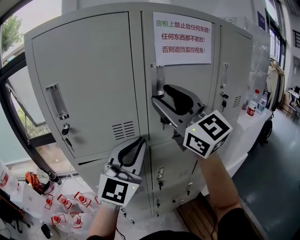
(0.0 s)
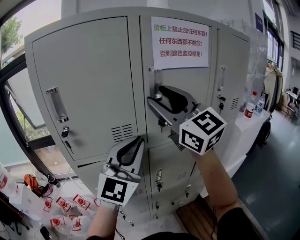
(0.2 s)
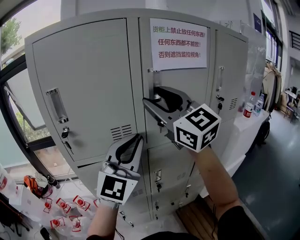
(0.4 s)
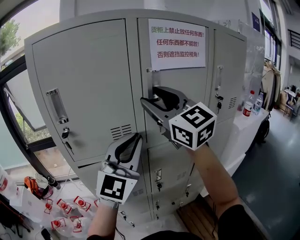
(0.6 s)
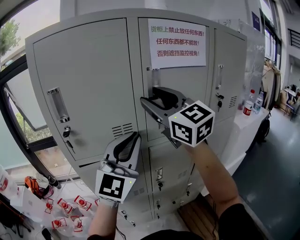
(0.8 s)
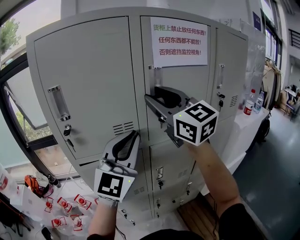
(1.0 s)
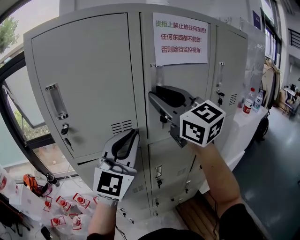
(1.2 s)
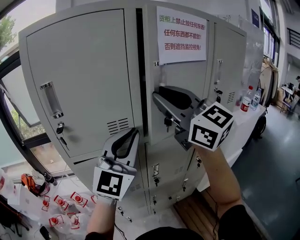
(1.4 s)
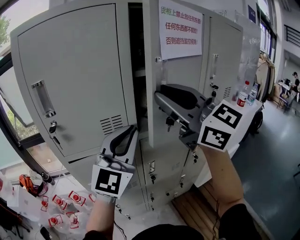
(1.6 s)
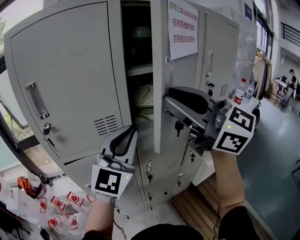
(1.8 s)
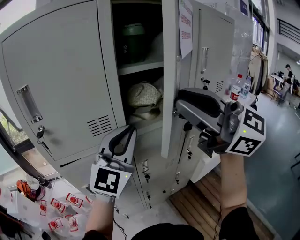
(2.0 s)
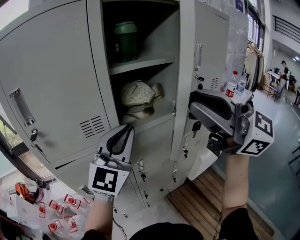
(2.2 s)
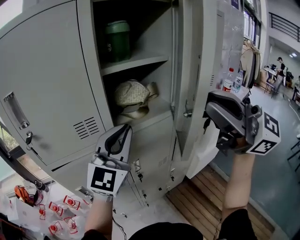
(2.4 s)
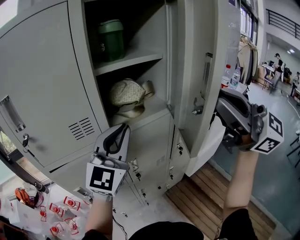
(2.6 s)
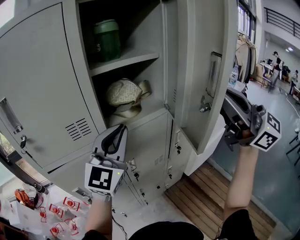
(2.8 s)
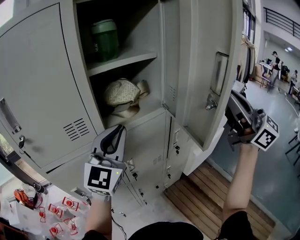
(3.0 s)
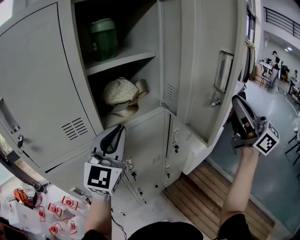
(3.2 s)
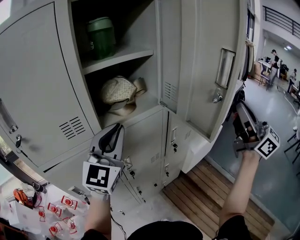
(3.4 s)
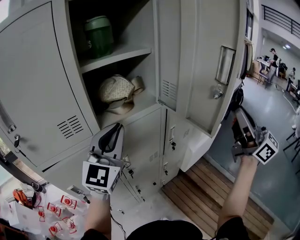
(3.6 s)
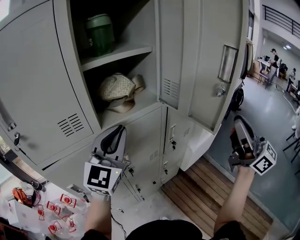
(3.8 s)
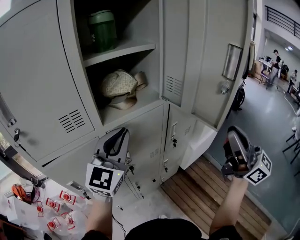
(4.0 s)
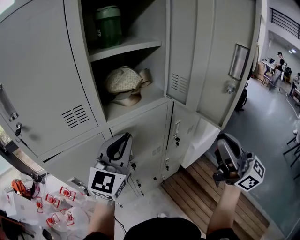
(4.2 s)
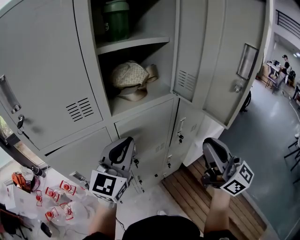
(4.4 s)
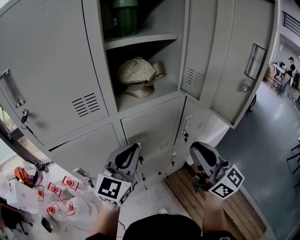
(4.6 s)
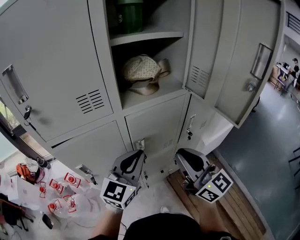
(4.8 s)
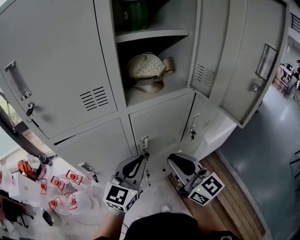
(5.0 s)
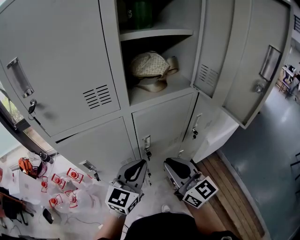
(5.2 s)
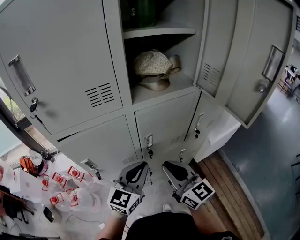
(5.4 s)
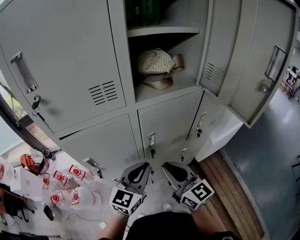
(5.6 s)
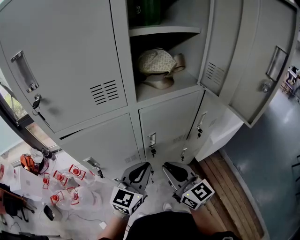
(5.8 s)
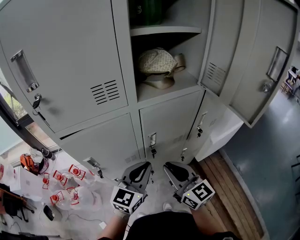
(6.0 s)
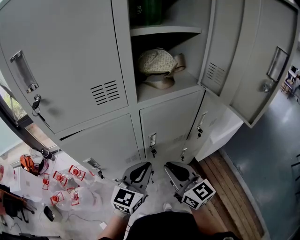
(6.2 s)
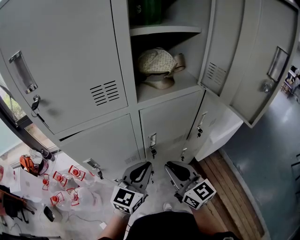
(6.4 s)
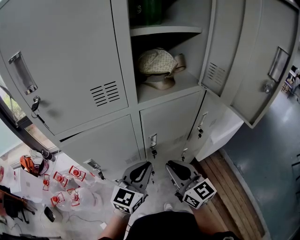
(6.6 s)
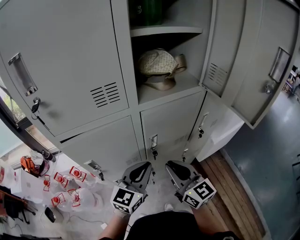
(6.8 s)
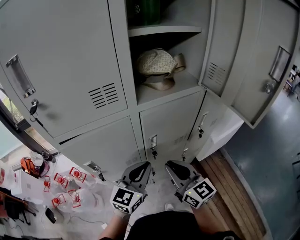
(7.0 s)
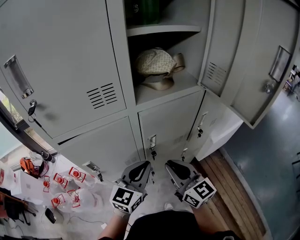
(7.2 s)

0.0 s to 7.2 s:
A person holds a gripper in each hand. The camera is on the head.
0.0 to 1.4 s: The right gripper closes its fingers.
1.4 to 2.8 s: The left gripper travels to the right by approximately 10 cm. The right gripper travels to the right and backward by about 25 cm.
2.8 to 4.4 s: The left gripper goes about 10 cm downward, while the right gripper moves downward, some 20 cm, and rotates roughly 20 degrees.
4.4 to 5.8 s: The right gripper shifts approximately 25 cm to the left and downward, and turns by approximately 20 degrees. Meanwhile the left gripper shifts about 15 cm downward and backward.
5.8 to 7.2 s: The grippers stay close to where they were, moving slightly.

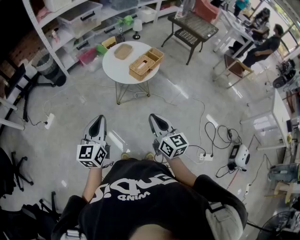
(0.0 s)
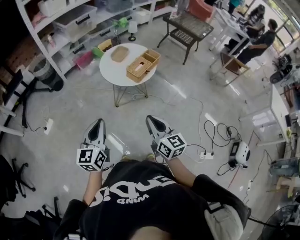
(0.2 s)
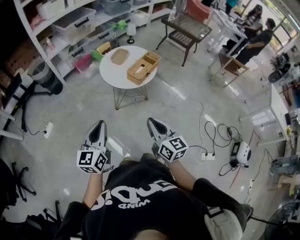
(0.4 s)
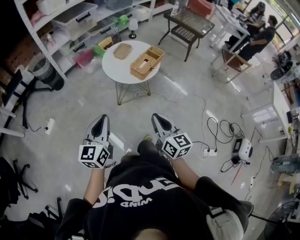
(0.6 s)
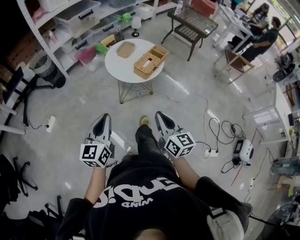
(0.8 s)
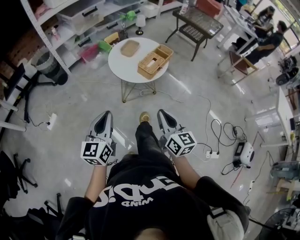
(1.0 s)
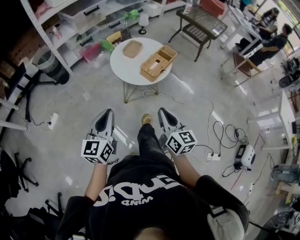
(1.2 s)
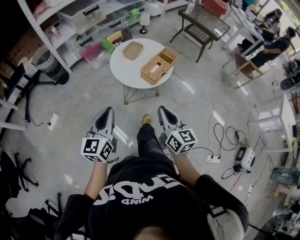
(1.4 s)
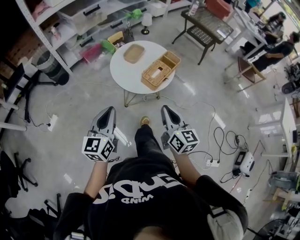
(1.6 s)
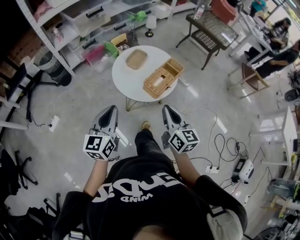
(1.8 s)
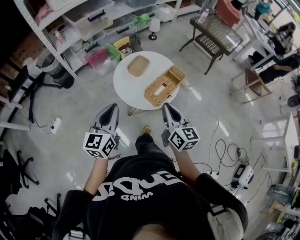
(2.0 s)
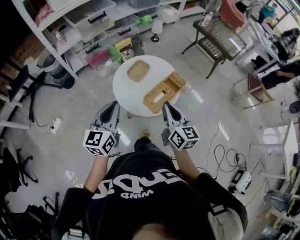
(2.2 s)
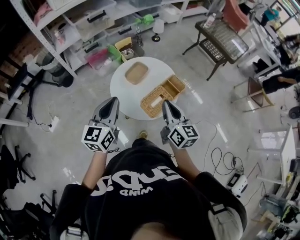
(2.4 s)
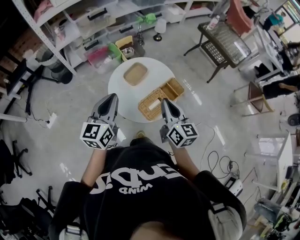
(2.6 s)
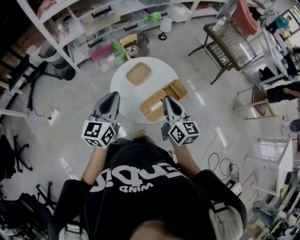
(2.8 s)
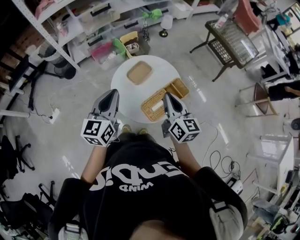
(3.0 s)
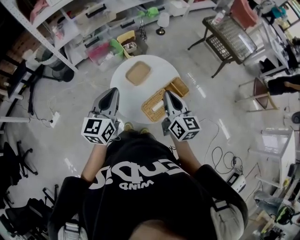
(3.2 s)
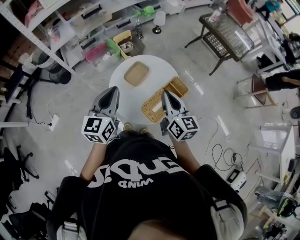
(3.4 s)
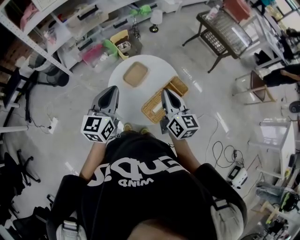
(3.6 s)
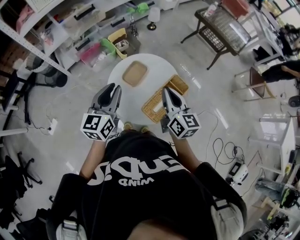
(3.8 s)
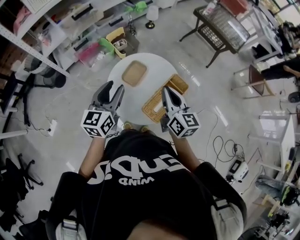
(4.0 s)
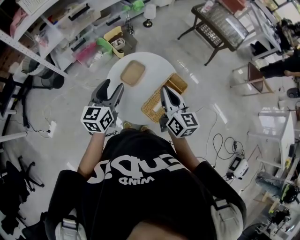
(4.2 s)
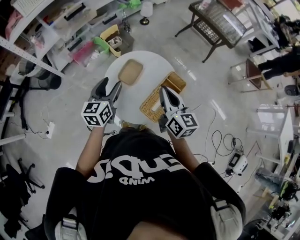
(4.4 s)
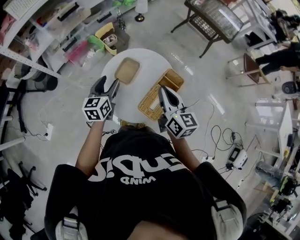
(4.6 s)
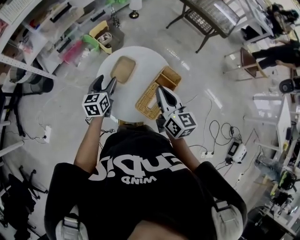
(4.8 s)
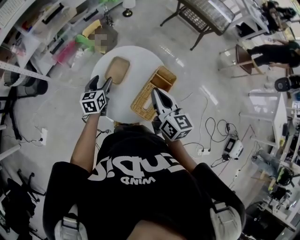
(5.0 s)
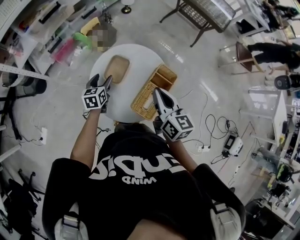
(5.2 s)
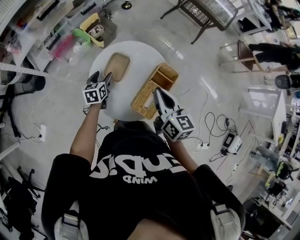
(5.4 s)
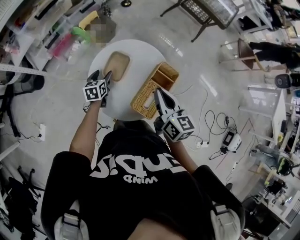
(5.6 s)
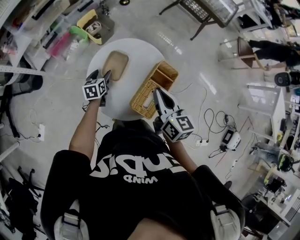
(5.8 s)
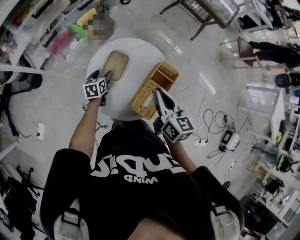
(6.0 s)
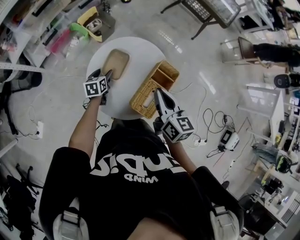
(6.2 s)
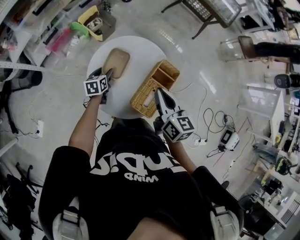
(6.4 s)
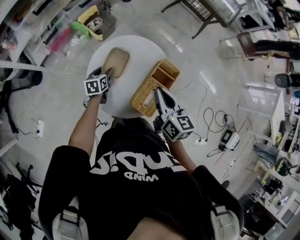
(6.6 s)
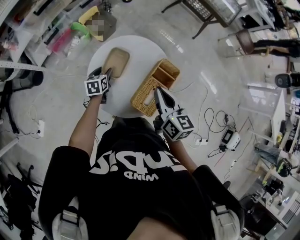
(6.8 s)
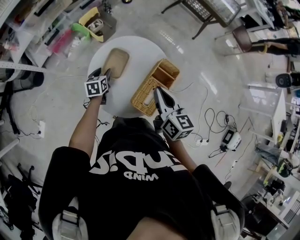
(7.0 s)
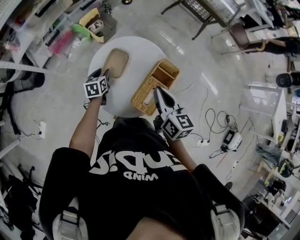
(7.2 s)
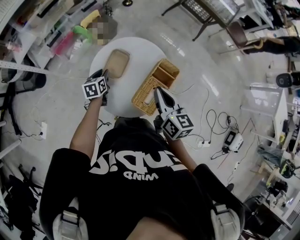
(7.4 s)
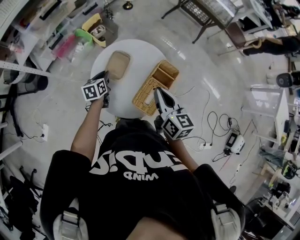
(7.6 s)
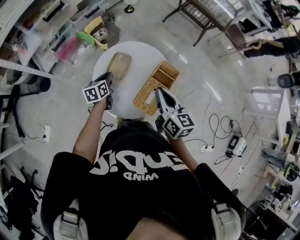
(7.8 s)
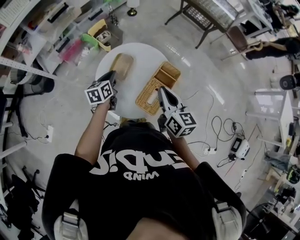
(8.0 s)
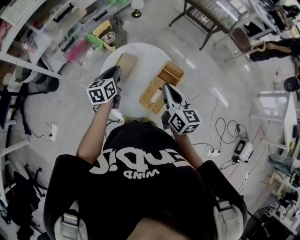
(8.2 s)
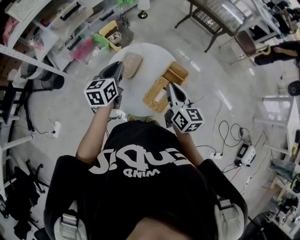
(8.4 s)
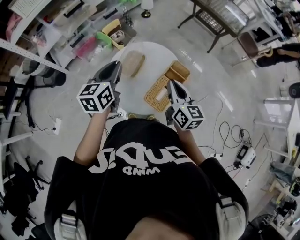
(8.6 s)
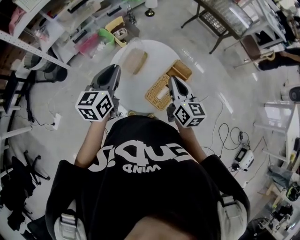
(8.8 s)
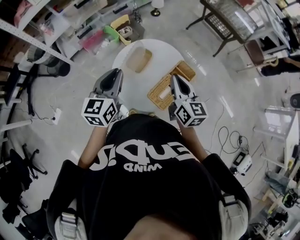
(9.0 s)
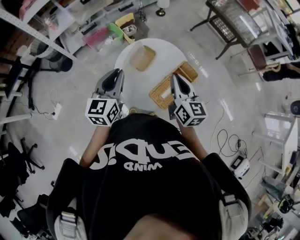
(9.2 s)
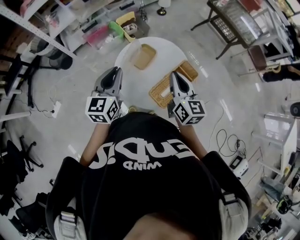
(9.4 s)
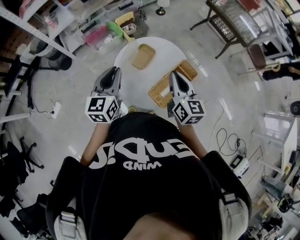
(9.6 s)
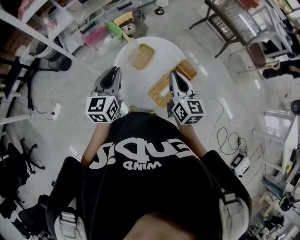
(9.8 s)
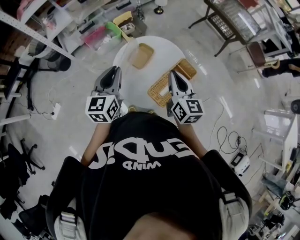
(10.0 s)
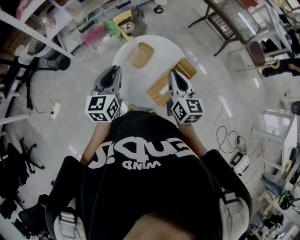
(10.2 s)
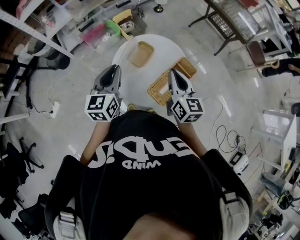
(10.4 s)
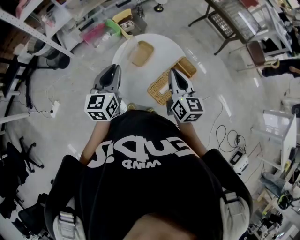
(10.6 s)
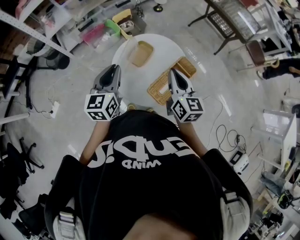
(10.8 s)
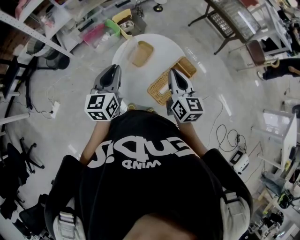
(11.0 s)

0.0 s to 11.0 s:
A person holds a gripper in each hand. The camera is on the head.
0.0 to 1.6 s: Both grippers travel together forward, roughly 15 cm.
1.6 to 3.2 s: The grippers both shift forward by about 30 cm.
3.2 to 4.8 s: The left gripper is displaced downward and forward by roughly 25 cm, swivels some 20 degrees, and opens its fingers.
4.8 to 6.2 s: The left gripper heads downward, covering approximately 15 cm, and swivels some 20 degrees.
6.2 to 7.8 s: The left gripper travels upward by roughly 10 cm, and closes its fingers.
7.8 to 9.4 s: The left gripper moves upward and backward, roughly 25 cm, and turns by about 30 degrees.
9.4 to 11.0 s: Both grippers stay about where they are.

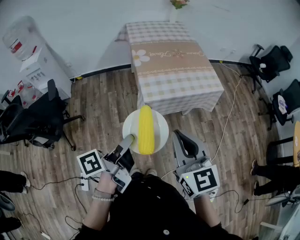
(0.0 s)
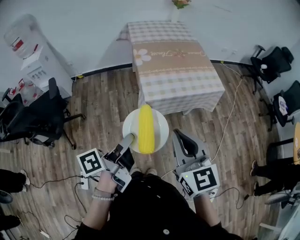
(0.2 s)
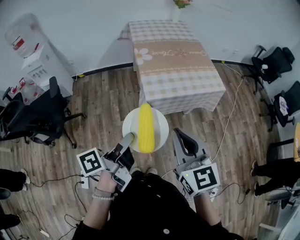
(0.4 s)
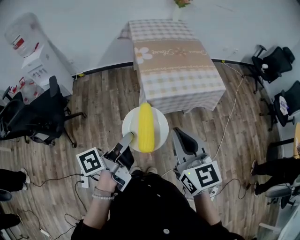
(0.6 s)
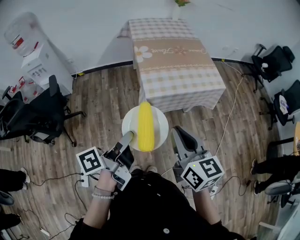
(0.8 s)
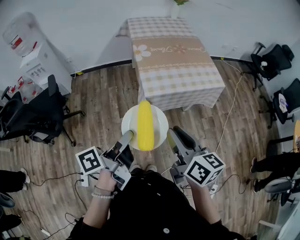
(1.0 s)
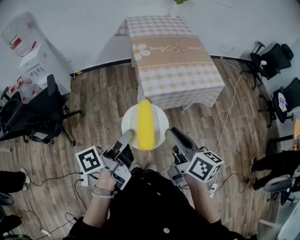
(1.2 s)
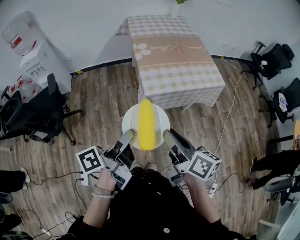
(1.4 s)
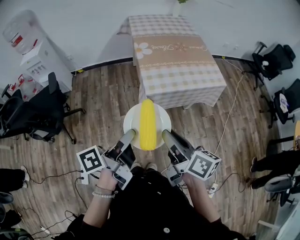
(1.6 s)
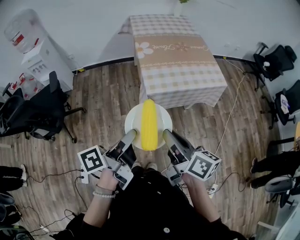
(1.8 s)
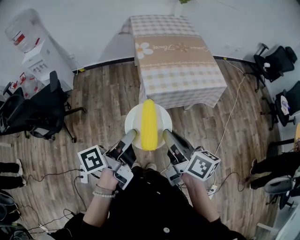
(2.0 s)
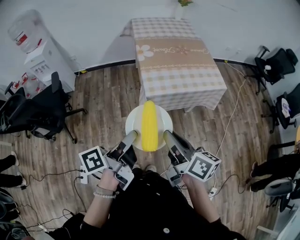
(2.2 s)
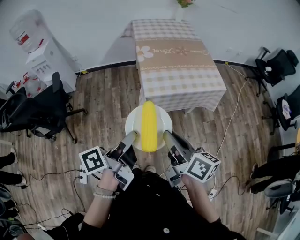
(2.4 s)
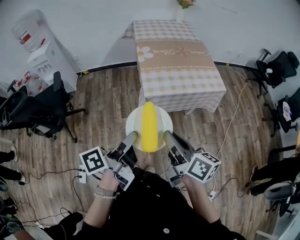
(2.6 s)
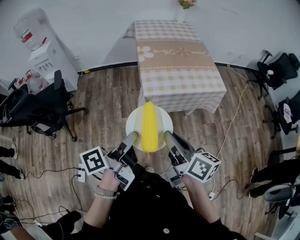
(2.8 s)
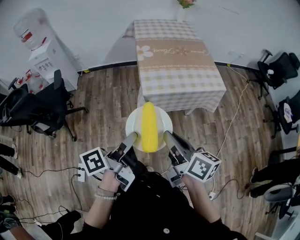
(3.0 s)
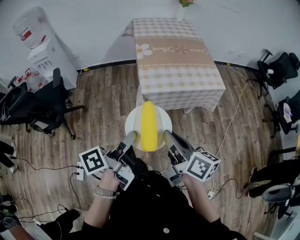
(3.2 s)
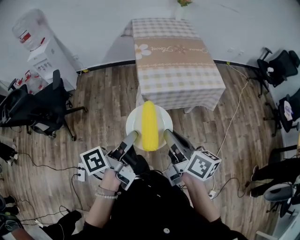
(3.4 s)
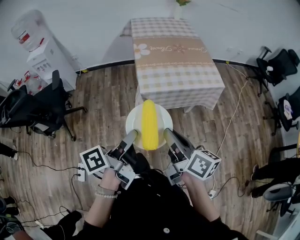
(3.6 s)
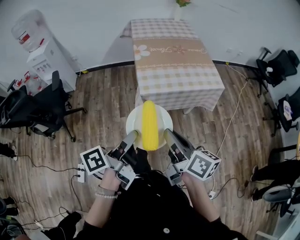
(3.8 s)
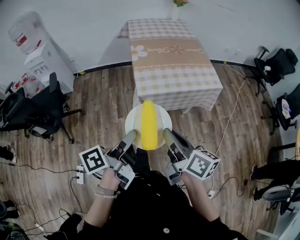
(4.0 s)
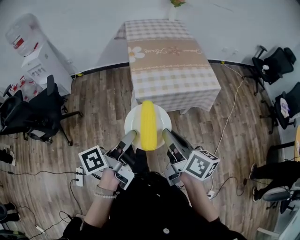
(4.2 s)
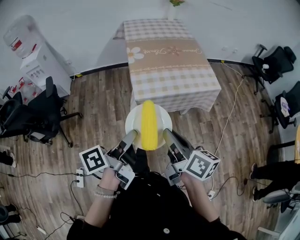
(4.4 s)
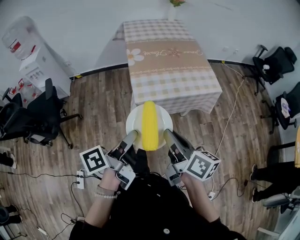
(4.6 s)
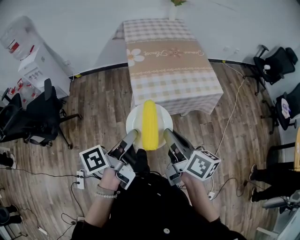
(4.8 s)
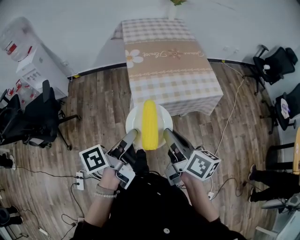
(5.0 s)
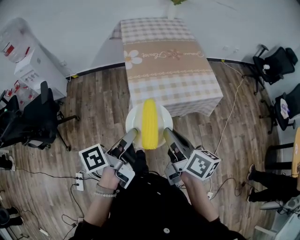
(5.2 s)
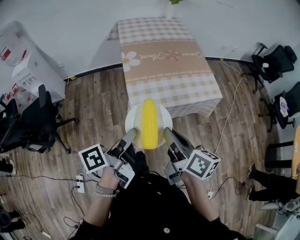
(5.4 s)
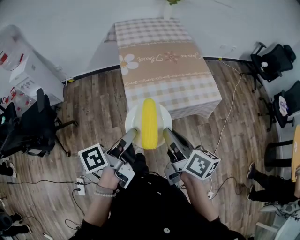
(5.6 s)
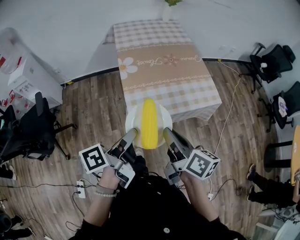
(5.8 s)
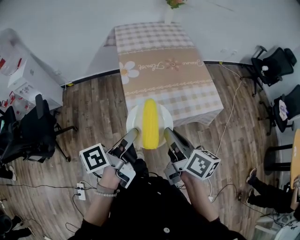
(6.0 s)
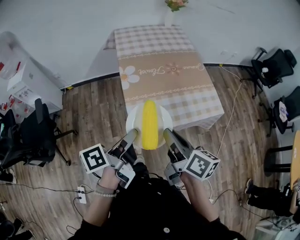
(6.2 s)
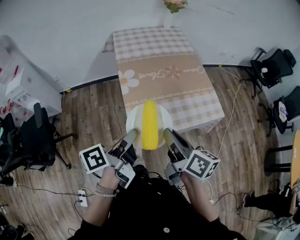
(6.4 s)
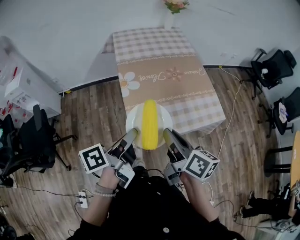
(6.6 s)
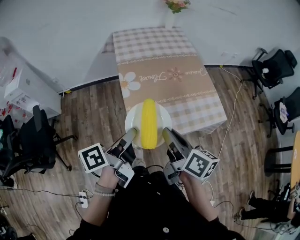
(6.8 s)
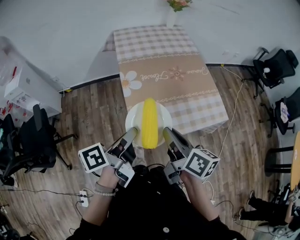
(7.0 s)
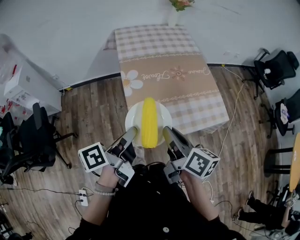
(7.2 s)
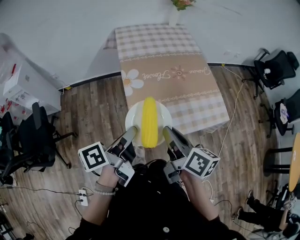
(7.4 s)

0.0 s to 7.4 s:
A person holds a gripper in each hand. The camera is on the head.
0.0 to 1.4 s: The right gripper heads downward, covering roughly 5 cm, rotates around the line of its fingers by some 50 degrees, clockwise from behind, and opens.
1.4 to 3.0 s: The left gripper shifts by about 5 cm.
3.0 to 4.4 s: The left gripper ends up approximately 5 cm from where it was. Meanwhile the right gripper moves approximately 5 cm.
4.4 to 6.0 s: Both grippers move forward, some 20 cm.
6.0 to 7.4 s: The grippers both shift forward by about 10 cm.
